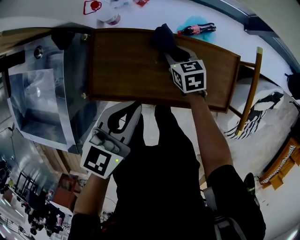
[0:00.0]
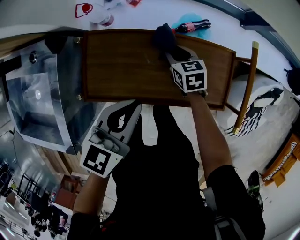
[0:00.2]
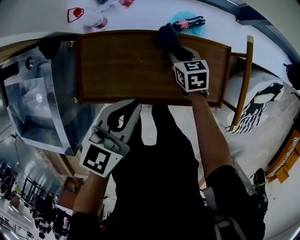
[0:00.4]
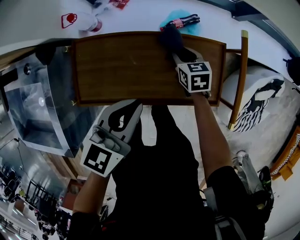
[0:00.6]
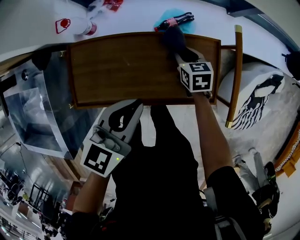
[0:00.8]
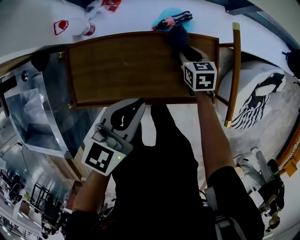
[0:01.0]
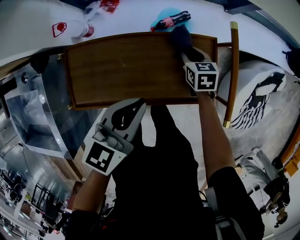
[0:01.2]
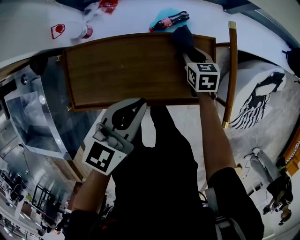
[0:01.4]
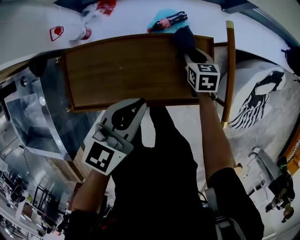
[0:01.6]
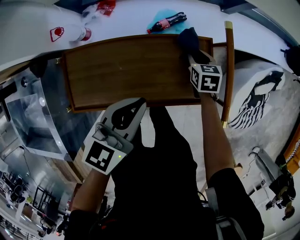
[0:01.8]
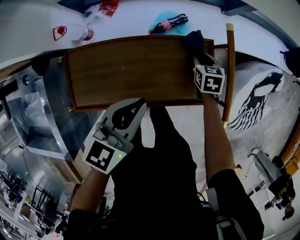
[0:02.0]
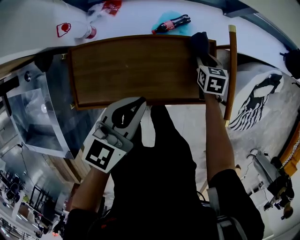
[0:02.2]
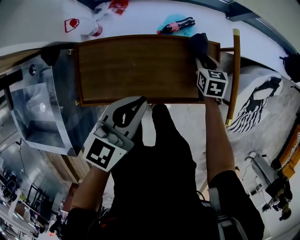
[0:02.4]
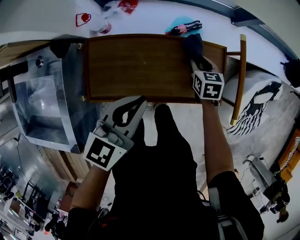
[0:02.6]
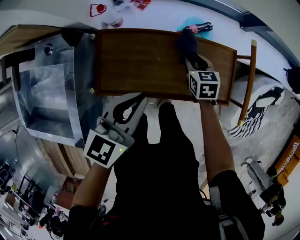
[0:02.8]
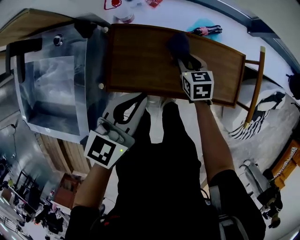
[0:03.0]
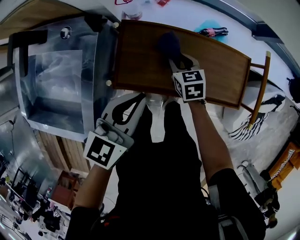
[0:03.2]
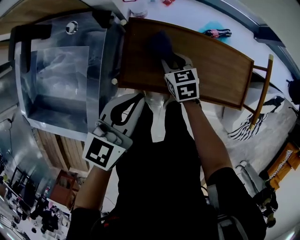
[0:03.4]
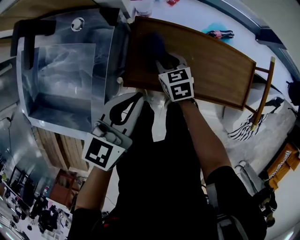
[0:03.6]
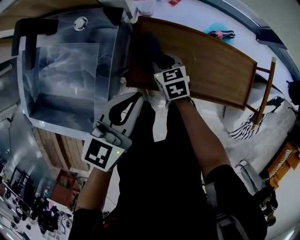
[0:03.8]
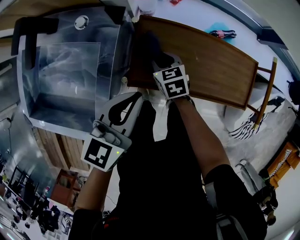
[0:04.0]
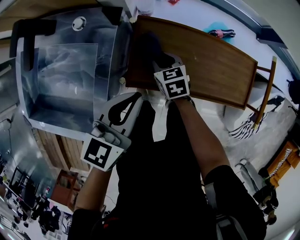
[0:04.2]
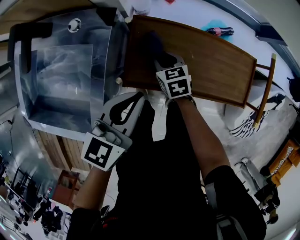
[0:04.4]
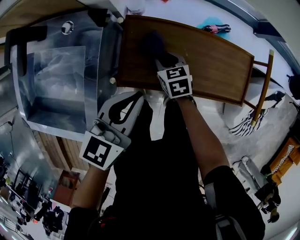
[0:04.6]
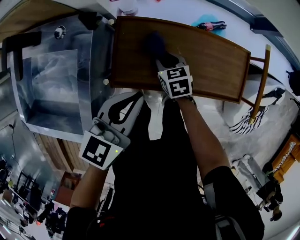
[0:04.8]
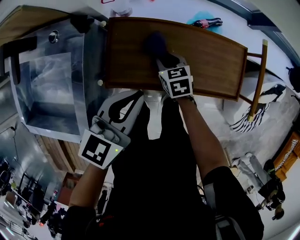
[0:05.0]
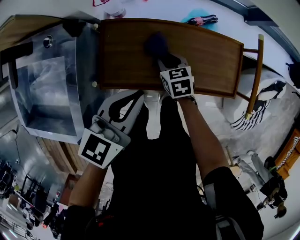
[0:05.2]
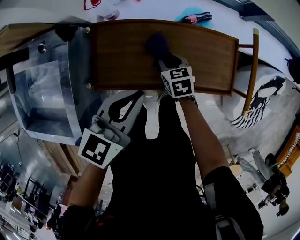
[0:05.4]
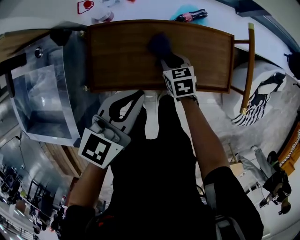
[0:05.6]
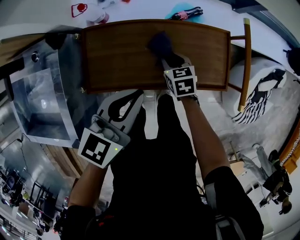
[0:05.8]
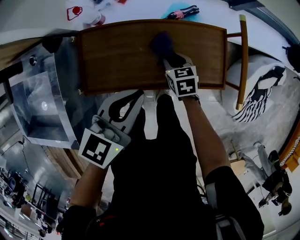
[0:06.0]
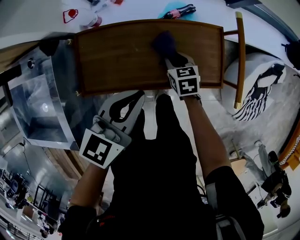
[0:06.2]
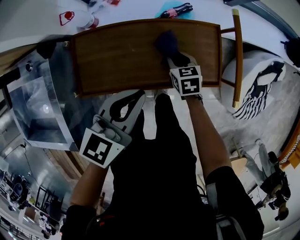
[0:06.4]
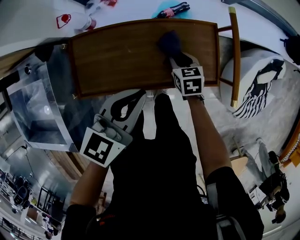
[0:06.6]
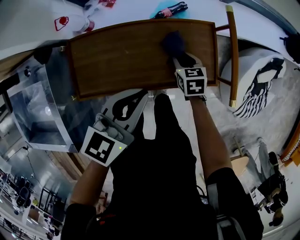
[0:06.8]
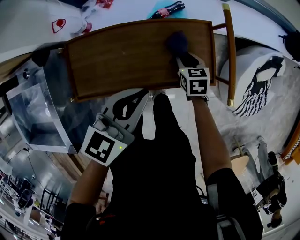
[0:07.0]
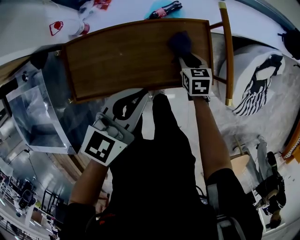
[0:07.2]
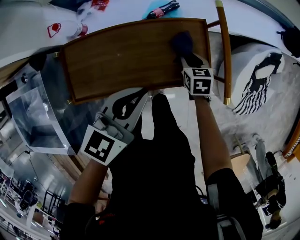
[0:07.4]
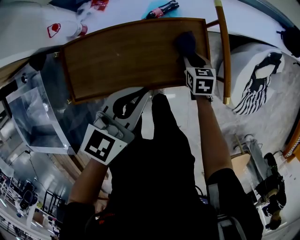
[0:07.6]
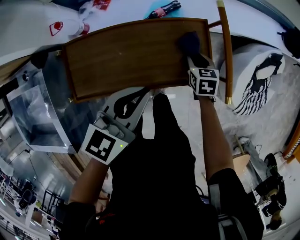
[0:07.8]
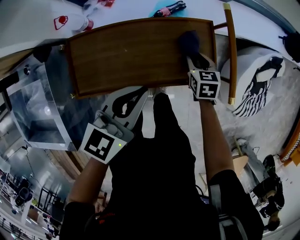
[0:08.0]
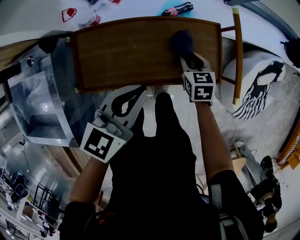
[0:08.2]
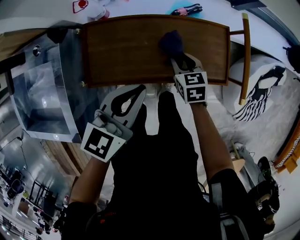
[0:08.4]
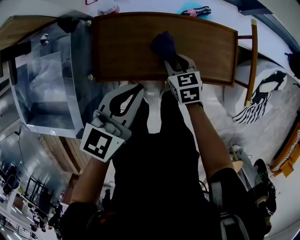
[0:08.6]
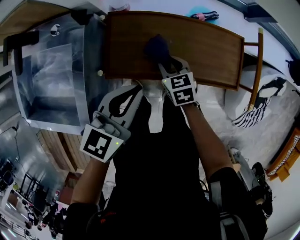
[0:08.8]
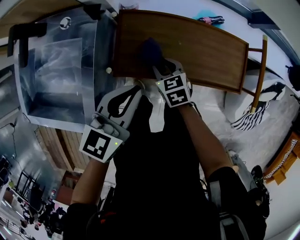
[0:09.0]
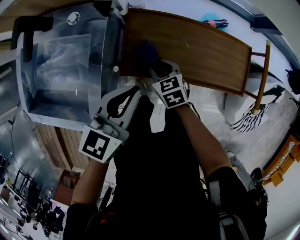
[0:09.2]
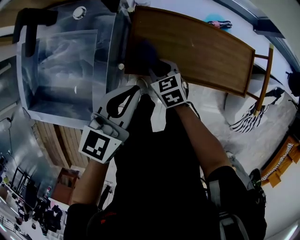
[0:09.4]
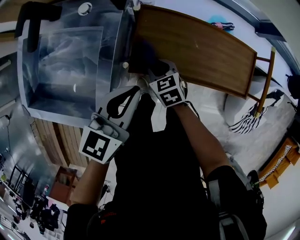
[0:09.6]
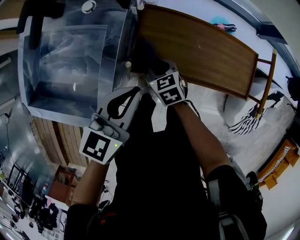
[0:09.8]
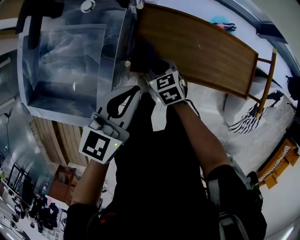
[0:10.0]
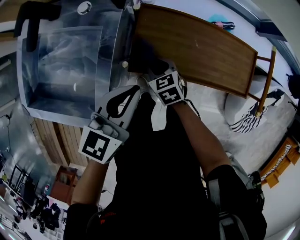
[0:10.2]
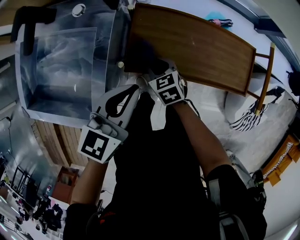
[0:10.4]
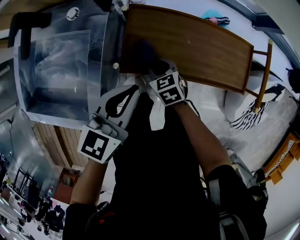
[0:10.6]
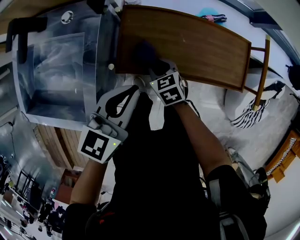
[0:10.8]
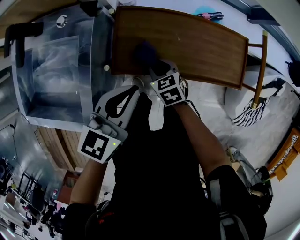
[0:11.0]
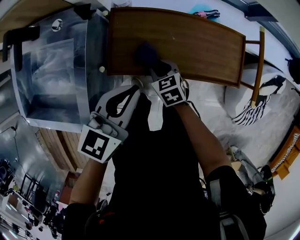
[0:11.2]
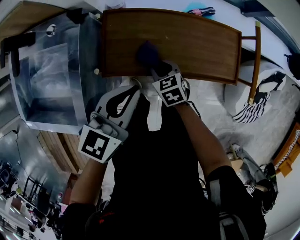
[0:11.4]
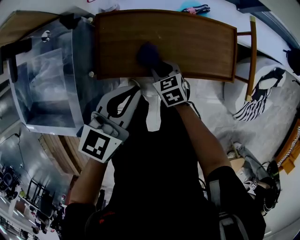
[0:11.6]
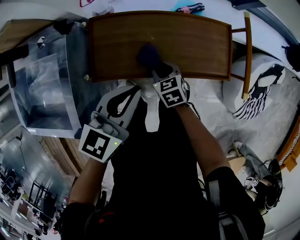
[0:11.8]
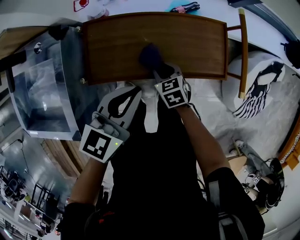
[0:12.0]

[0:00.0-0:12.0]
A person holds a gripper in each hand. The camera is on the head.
0.0 to 1.6 s: The right gripper heads to the right, covering approximately 25 cm, and rotates some 20 degrees. Meanwhile the left gripper is displaced to the right by some 15 cm.
1.6 to 3.0 s: The two grippers go approximately 20 cm to the left and backward.
3.0 to 4.4 s: The left gripper goes roughly 10 cm to the left; the right gripper is displaced to the left by some 20 cm.
4.4 to 6.0 s: Both grippers travel together to the right, some 20 cm.
6.0 to 7.6 s: The left gripper moves to the right, roughly 10 cm. The right gripper goes approximately 20 cm to the right.
7.6 to 9.0 s: The right gripper shifts by approximately 40 cm, and turns by roughly 30 degrees. Meanwhile the left gripper shifts by approximately 25 cm.
9.0 to 10.4 s: The grippers both shift to the left by some 5 cm.
10.4 to 12.0 s: Both grippers move to the right, roughly 20 cm.

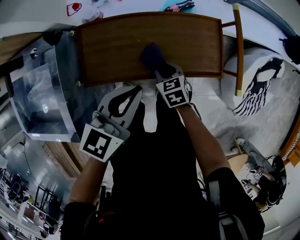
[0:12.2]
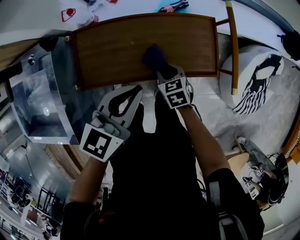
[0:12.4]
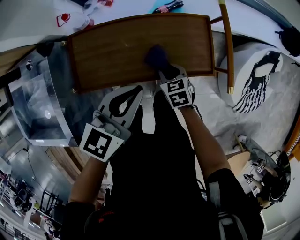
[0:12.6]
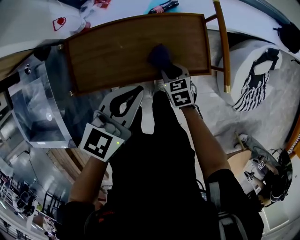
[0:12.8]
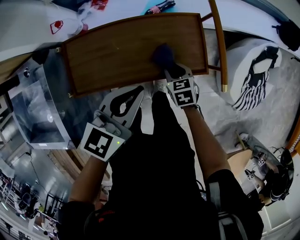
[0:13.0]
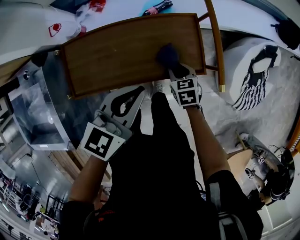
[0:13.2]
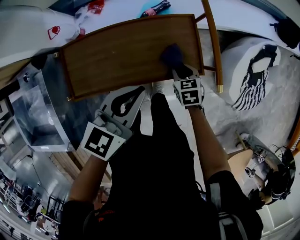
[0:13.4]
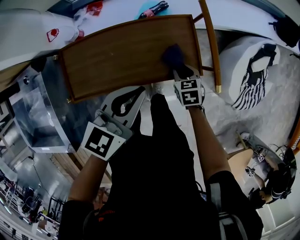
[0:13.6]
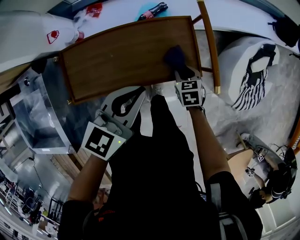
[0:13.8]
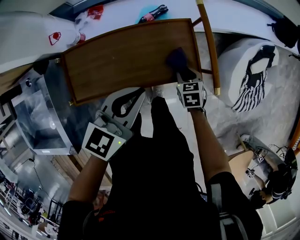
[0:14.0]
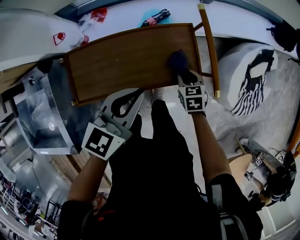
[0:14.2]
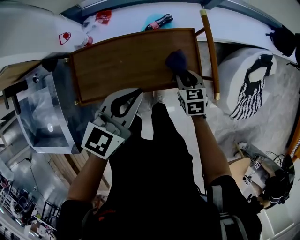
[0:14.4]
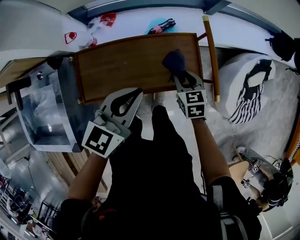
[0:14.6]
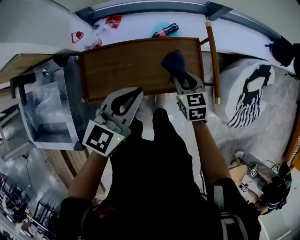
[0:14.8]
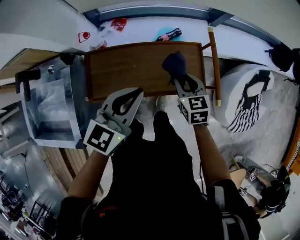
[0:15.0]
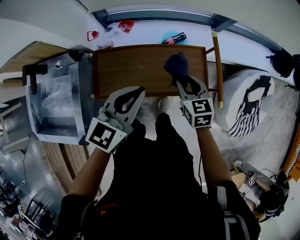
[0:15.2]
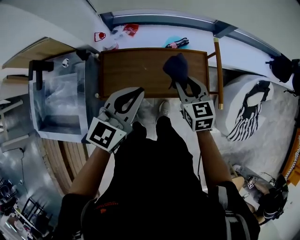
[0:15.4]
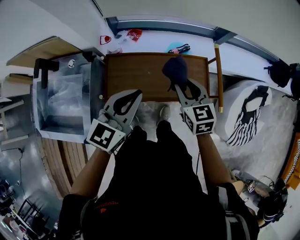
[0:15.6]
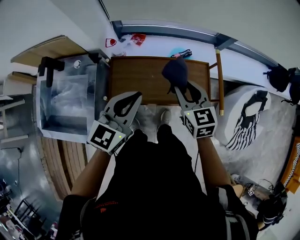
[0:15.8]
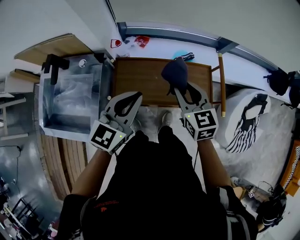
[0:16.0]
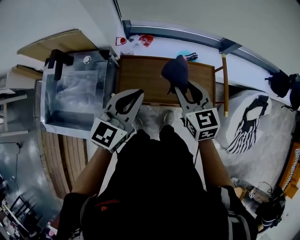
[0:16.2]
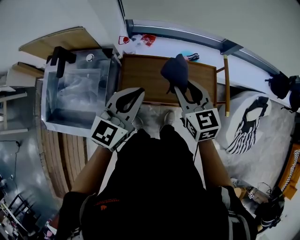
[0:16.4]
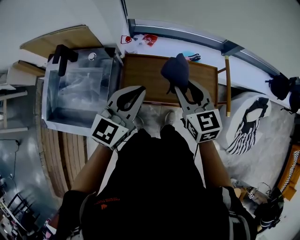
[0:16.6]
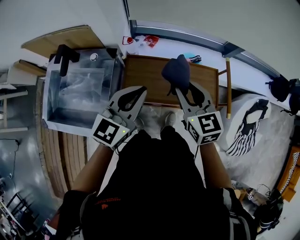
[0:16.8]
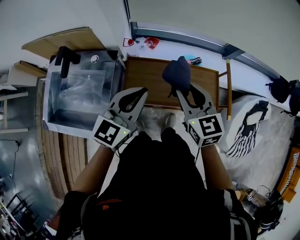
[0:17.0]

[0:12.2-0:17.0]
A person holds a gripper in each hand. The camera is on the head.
12.2 to 13.8 s: The left gripper moves to the right, approximately 10 cm; the right gripper moves to the right, approximately 20 cm, and swivels some 20 degrees.
13.8 to 15.4 s: The right gripper travels upward and to the left by approximately 30 cm, and swivels approximately 30 degrees. The left gripper goes approximately 15 cm to the left and upward.
15.4 to 17.0 s: The two grippers go roughly 15 cm to the left and upward.

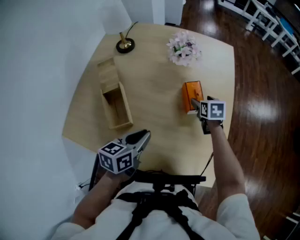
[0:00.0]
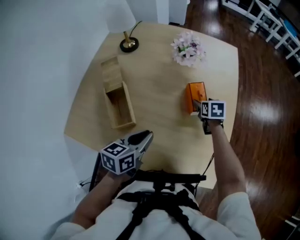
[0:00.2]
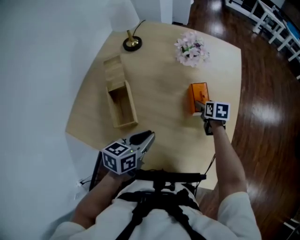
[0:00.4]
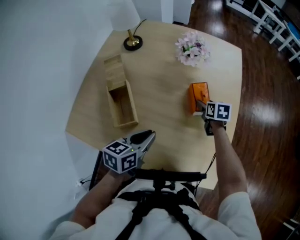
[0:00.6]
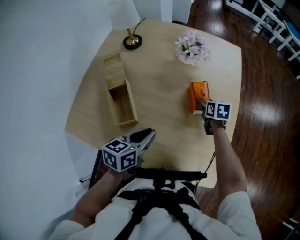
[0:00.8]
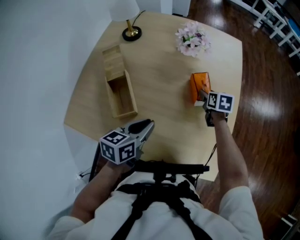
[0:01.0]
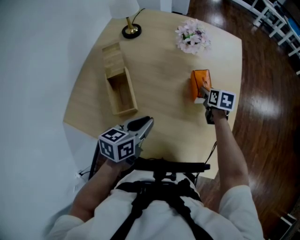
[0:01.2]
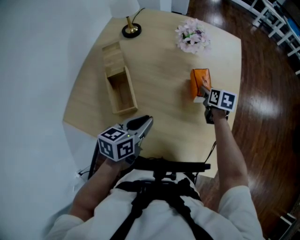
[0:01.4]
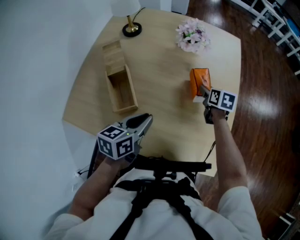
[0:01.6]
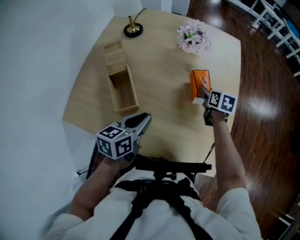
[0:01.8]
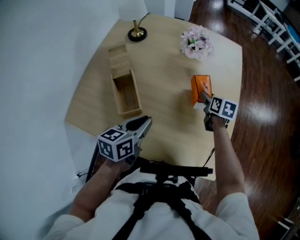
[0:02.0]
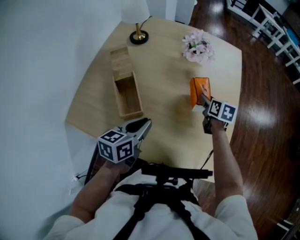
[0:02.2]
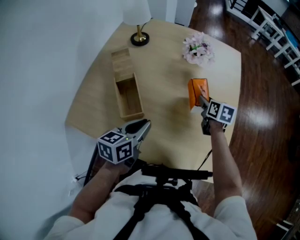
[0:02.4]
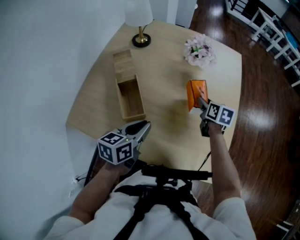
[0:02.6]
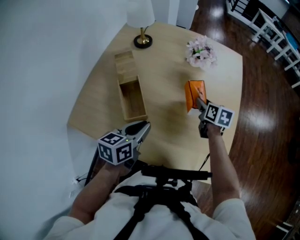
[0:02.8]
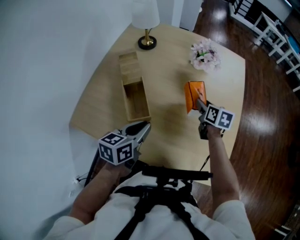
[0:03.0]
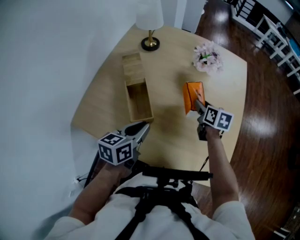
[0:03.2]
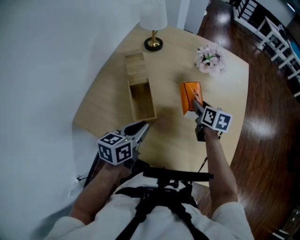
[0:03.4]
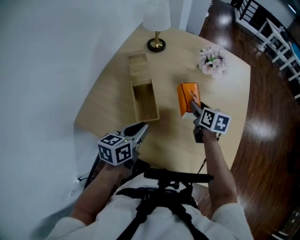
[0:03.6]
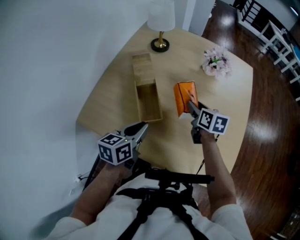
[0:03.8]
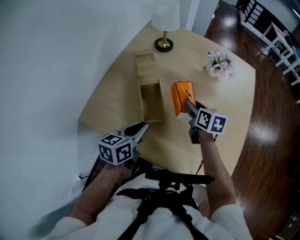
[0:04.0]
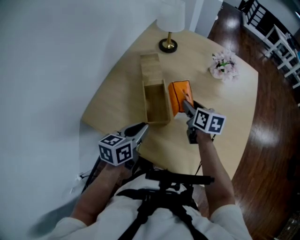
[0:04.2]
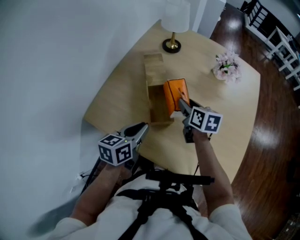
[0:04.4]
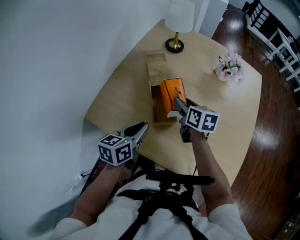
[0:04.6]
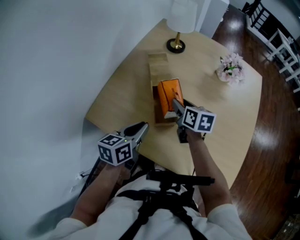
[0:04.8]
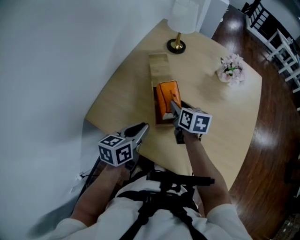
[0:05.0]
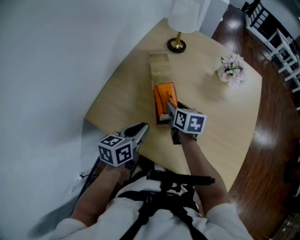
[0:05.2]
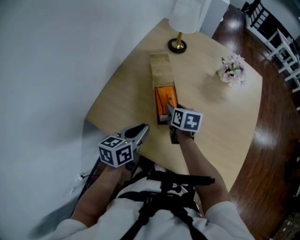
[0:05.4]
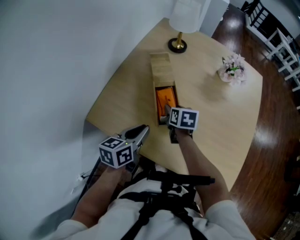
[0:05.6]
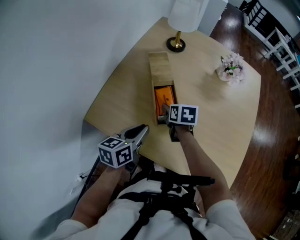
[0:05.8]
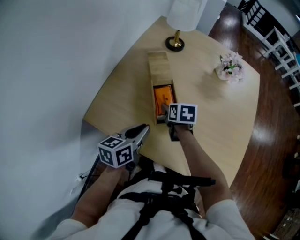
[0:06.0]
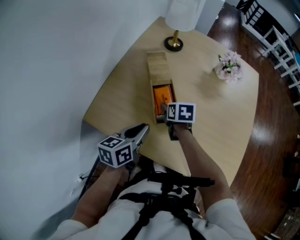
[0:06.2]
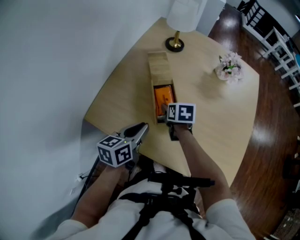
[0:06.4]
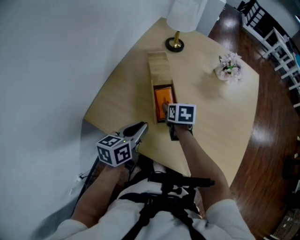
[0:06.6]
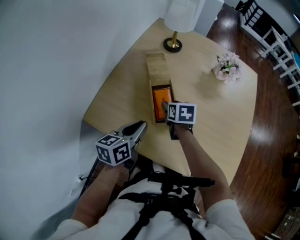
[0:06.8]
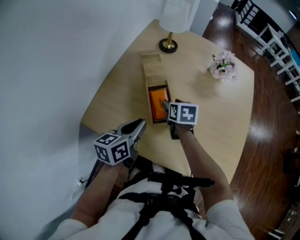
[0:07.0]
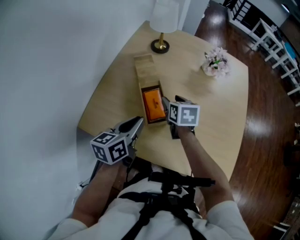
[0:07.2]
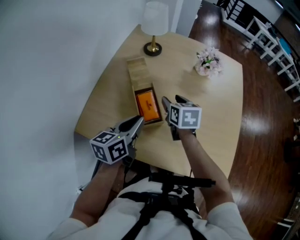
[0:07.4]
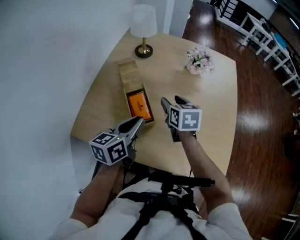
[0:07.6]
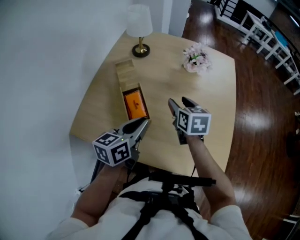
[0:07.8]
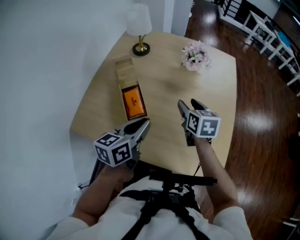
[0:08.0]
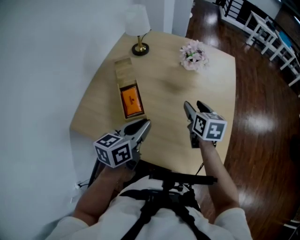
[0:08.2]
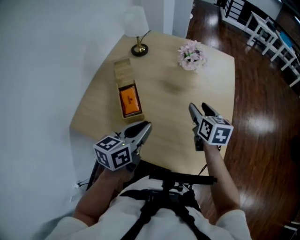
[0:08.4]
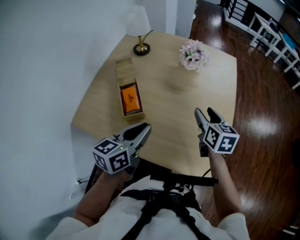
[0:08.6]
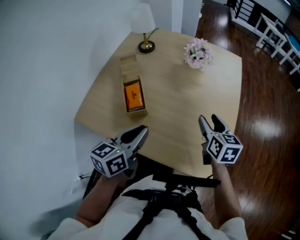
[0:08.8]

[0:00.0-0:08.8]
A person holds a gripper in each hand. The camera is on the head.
0.0 to 1.4 s: The right gripper closes its fingers.
1.4 to 3.0 s: The right gripper goes some 10 cm to the left and upward. The left gripper shifts roughly 10 cm to the left.
3.0 to 4.4 s: The left gripper shifts approximately 10 cm to the left; the right gripper is displaced to the left by approximately 20 cm.
4.4 to 5.8 s: The right gripper heads to the left and downward, covering about 10 cm.
5.8 to 7.4 s: The left gripper is displaced upward by about 5 cm. Meanwhile the right gripper is displaced upward and to the right by roughly 15 cm.
7.4 to 8.8 s: The right gripper travels to the right by about 30 cm. Meanwhile the left gripper shifts some 20 cm to the right and backward.
